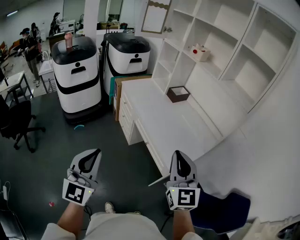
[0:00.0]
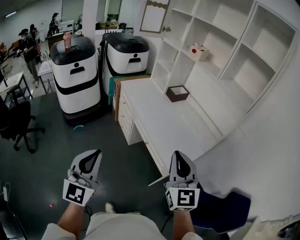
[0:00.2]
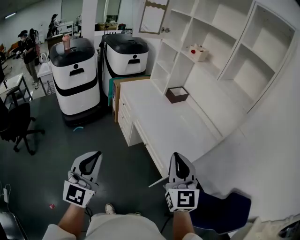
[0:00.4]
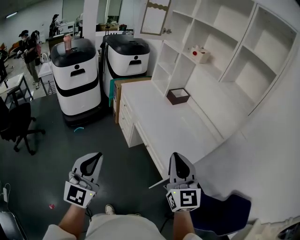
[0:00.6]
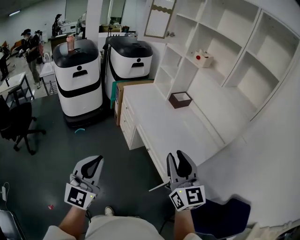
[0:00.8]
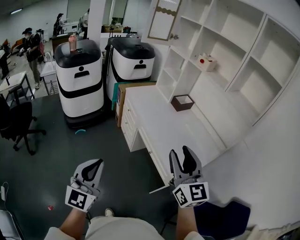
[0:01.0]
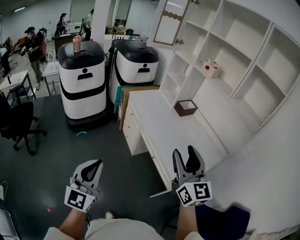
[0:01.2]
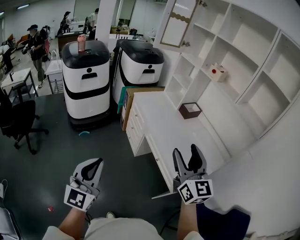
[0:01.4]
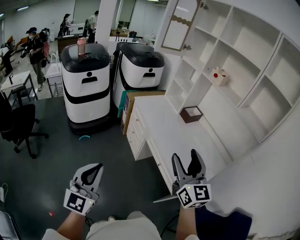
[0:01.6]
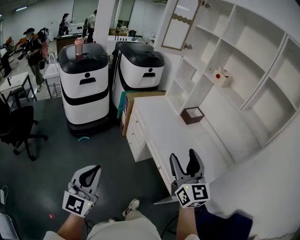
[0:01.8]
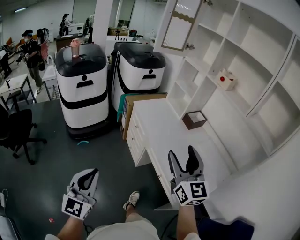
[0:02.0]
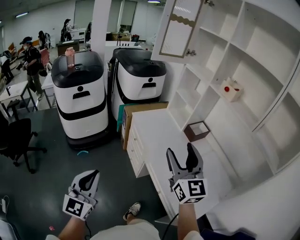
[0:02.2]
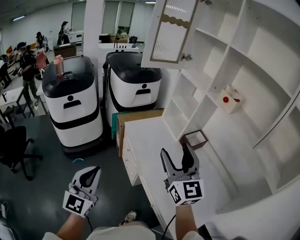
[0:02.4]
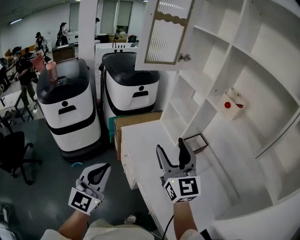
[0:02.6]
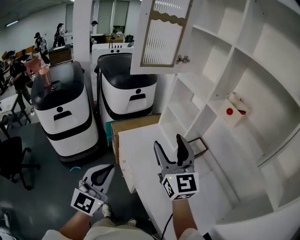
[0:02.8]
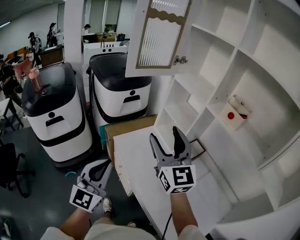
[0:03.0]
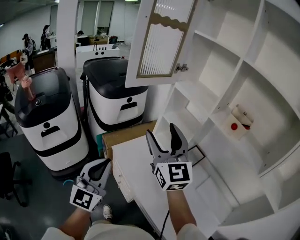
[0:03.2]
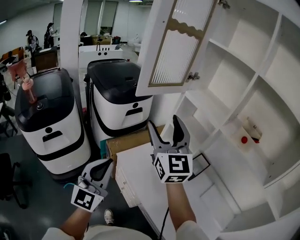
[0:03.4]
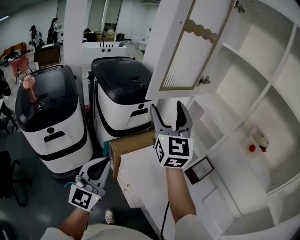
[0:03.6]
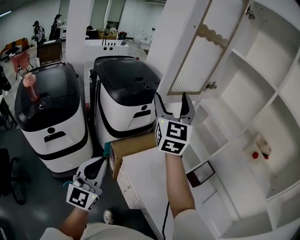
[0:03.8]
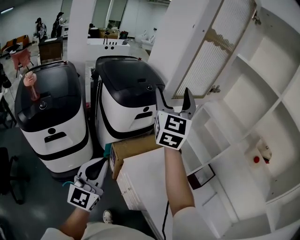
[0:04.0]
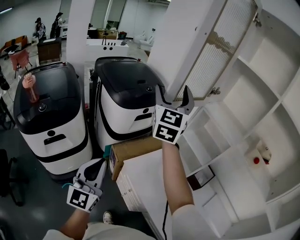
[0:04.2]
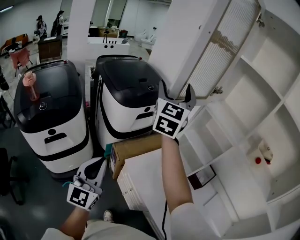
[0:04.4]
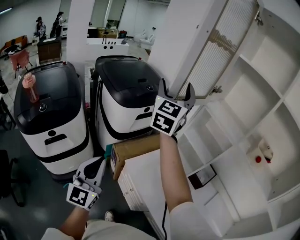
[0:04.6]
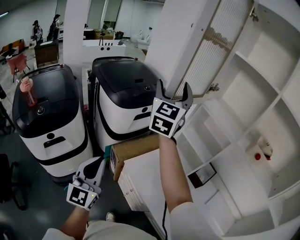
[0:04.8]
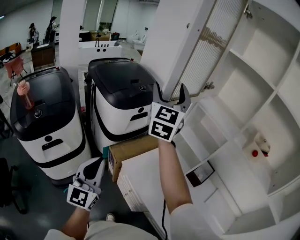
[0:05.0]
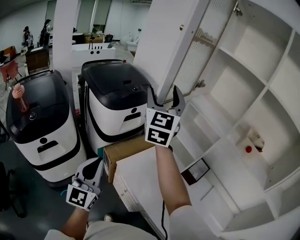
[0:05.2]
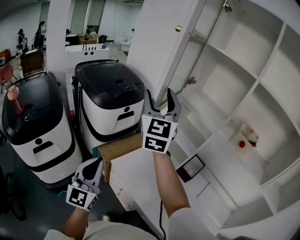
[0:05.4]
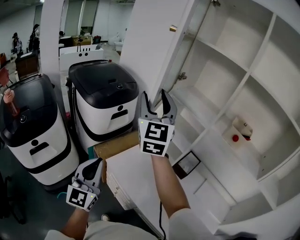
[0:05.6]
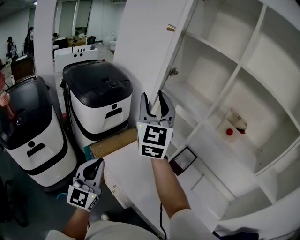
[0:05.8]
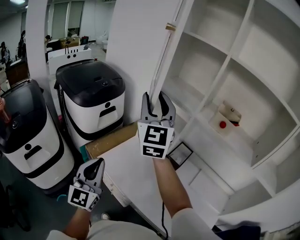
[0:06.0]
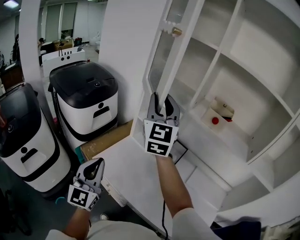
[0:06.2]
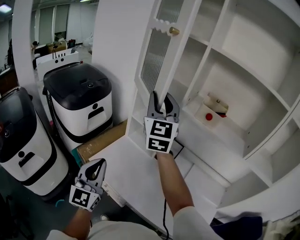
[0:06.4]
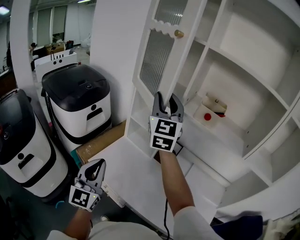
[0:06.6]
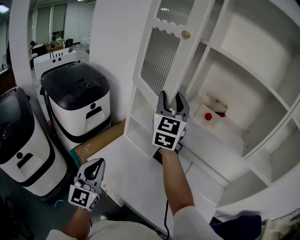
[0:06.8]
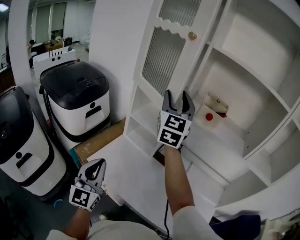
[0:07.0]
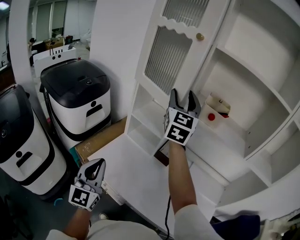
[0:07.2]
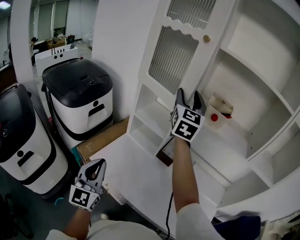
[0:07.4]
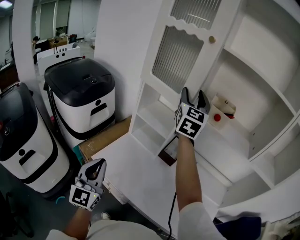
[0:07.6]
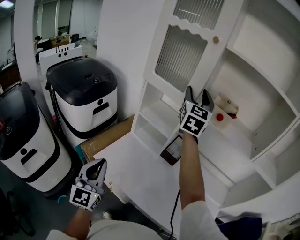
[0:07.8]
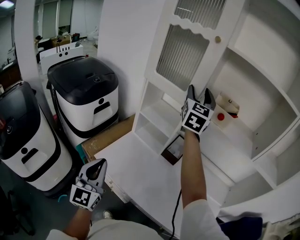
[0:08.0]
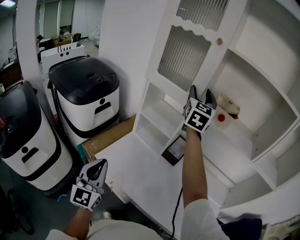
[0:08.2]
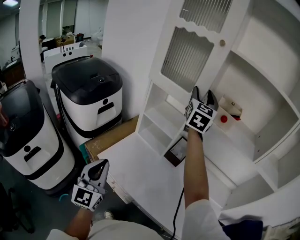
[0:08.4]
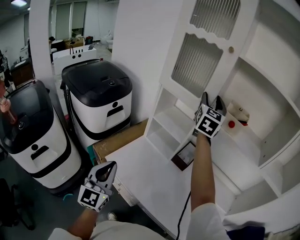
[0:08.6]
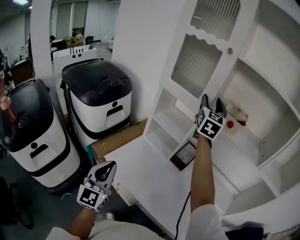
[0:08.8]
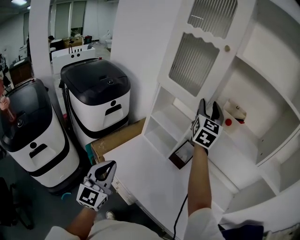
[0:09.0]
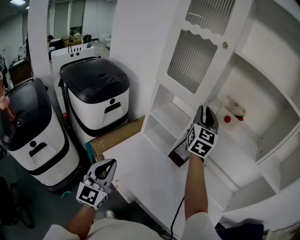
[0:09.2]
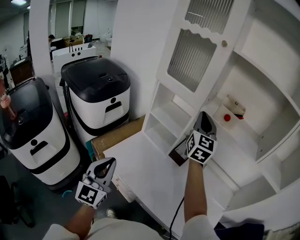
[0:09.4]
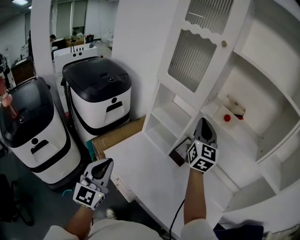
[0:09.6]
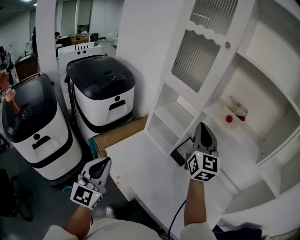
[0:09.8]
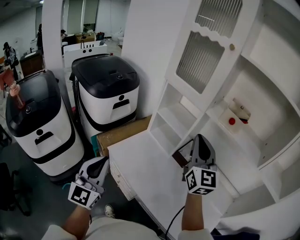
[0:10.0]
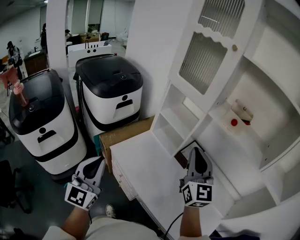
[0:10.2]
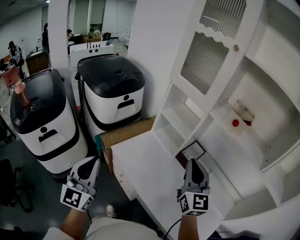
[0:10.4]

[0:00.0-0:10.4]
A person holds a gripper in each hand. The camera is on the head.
0:00.0 to 0:01.4: The right gripper goes some 15 cm forward and to the left, and opens its fingers, while the left gripper goes about 10 cm to the left.
0:01.4 to 0:03.0: Both grippers are carried forward, roughly 50 cm.
0:03.0 to 0:04.4: The right gripper heads forward and to the left, covering about 35 cm, and changes its angle by approximately 30 degrees; the left gripper shifts some 25 cm to the left and forward.
0:04.4 to 0:06.0: The right gripper is displaced to the right and backward by approximately 20 cm, and closes up; the left gripper moves to the right, about 15 cm.
0:06.0 to 0:07.4: The right gripper goes roughly 20 cm to the right and forward, and changes its angle by some 20 degrees.
0:07.4 to 0:09.0: The grippers make only small movements.
0:09.0 to 0:10.4: The left gripper shifts about 5 cm backward, while the right gripper goes approximately 25 cm backward and downward, swivels approximately 30 degrees, and closes its fingers.

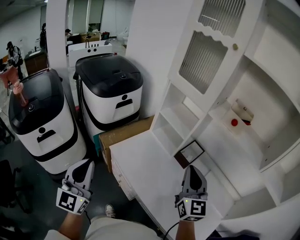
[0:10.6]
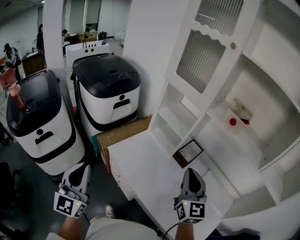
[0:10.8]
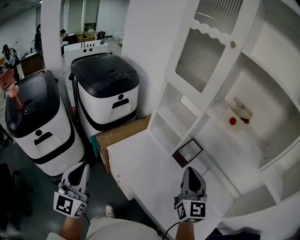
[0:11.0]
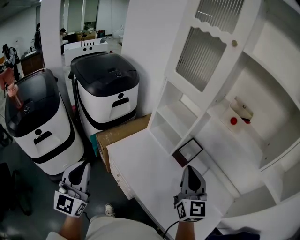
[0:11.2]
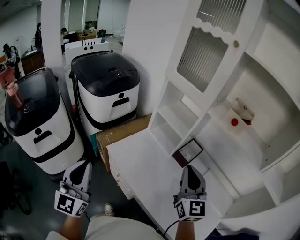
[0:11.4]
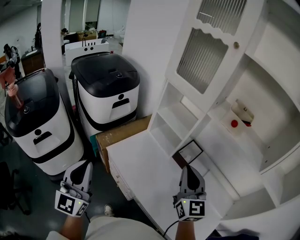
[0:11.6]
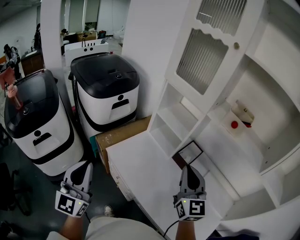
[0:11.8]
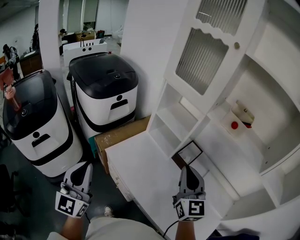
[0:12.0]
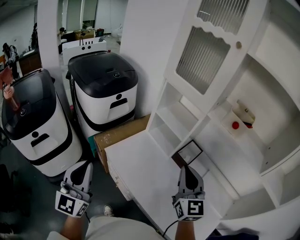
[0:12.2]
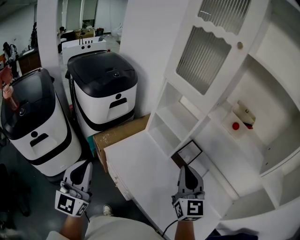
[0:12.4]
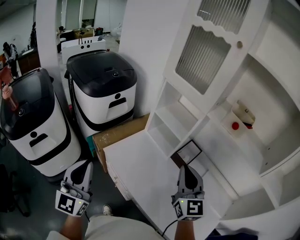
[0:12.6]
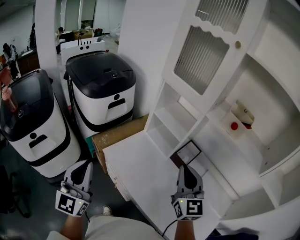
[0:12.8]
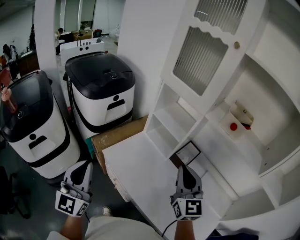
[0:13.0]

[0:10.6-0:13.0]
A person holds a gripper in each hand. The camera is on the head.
0:10.6 to 0:11.8: Both grippers stay about where they are.
0:11.8 to 0:13.0: The grippers move only a little.

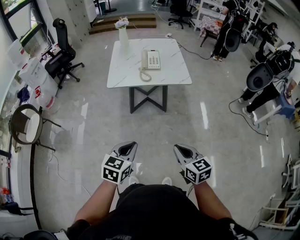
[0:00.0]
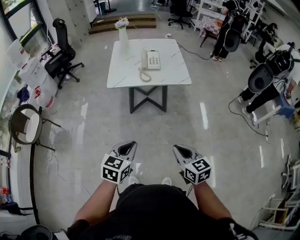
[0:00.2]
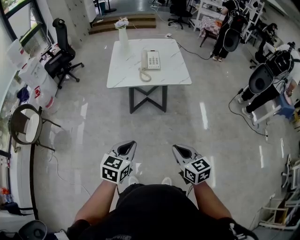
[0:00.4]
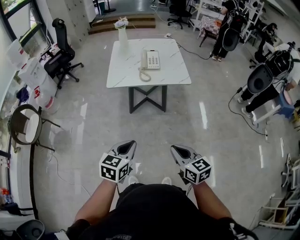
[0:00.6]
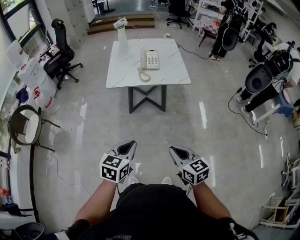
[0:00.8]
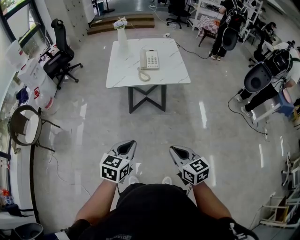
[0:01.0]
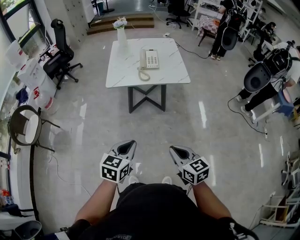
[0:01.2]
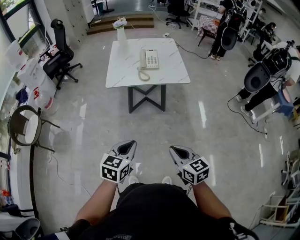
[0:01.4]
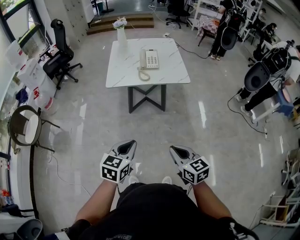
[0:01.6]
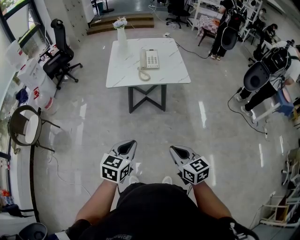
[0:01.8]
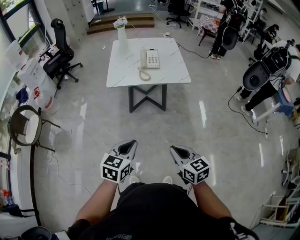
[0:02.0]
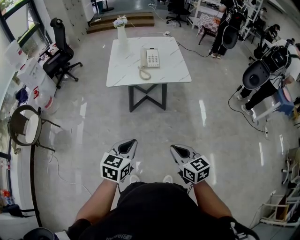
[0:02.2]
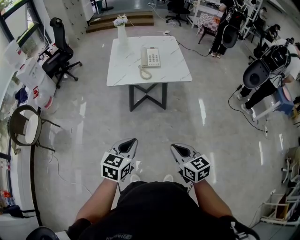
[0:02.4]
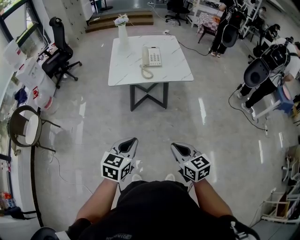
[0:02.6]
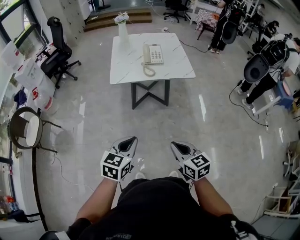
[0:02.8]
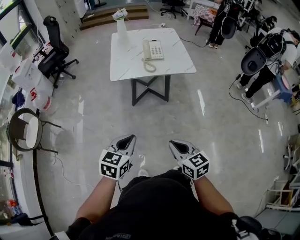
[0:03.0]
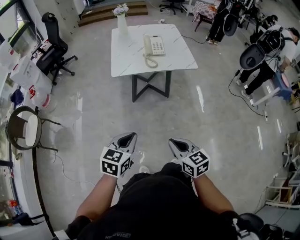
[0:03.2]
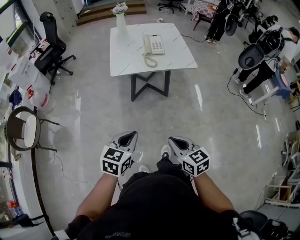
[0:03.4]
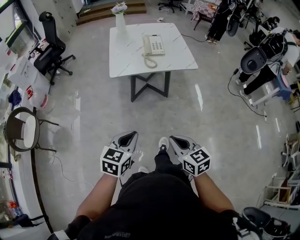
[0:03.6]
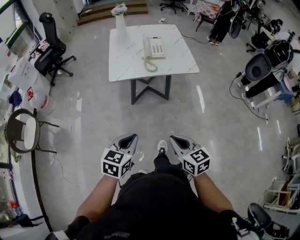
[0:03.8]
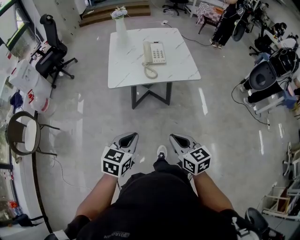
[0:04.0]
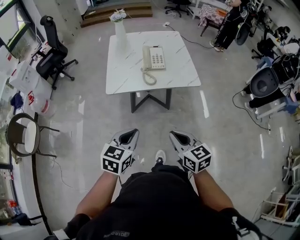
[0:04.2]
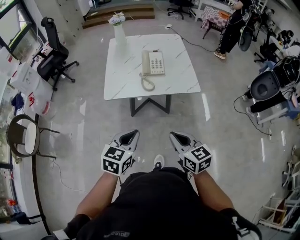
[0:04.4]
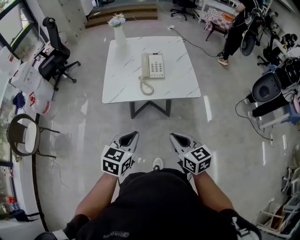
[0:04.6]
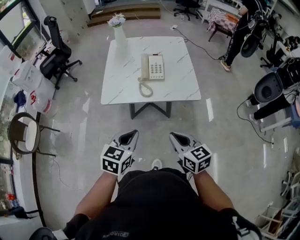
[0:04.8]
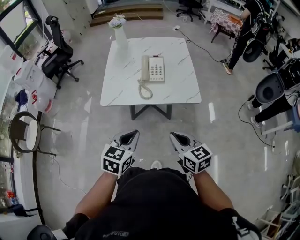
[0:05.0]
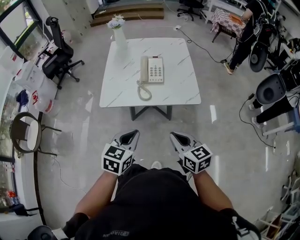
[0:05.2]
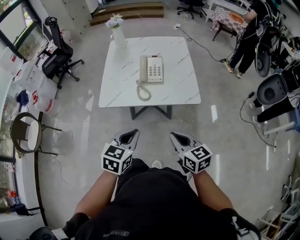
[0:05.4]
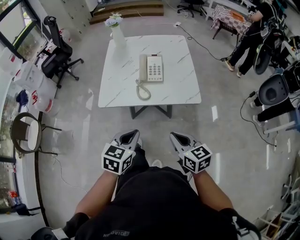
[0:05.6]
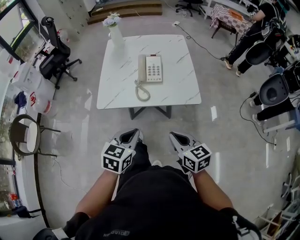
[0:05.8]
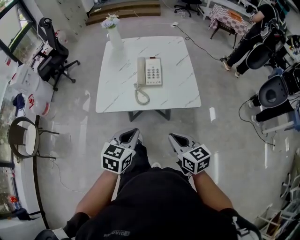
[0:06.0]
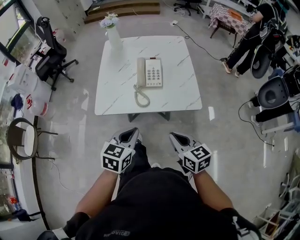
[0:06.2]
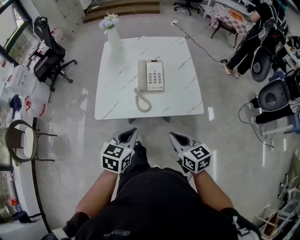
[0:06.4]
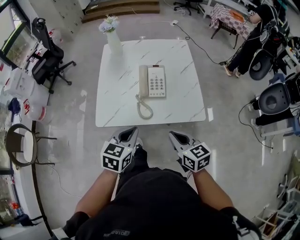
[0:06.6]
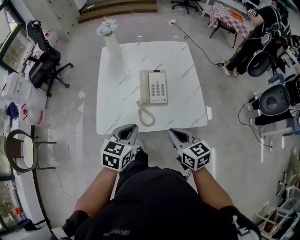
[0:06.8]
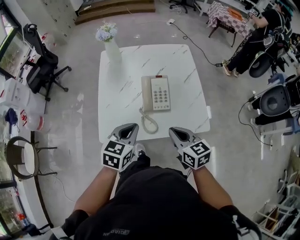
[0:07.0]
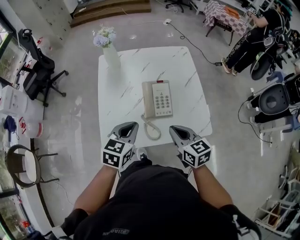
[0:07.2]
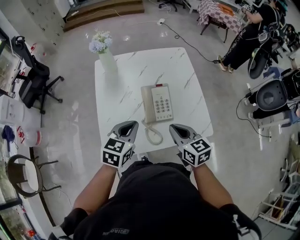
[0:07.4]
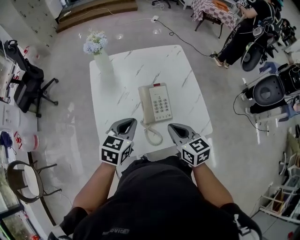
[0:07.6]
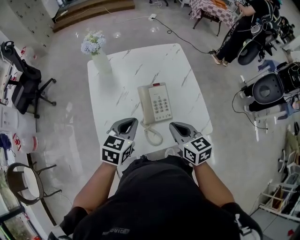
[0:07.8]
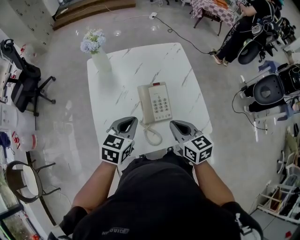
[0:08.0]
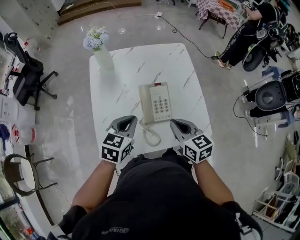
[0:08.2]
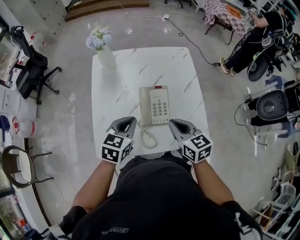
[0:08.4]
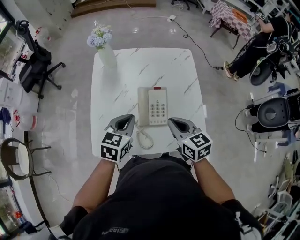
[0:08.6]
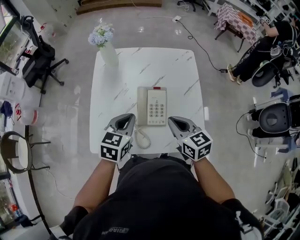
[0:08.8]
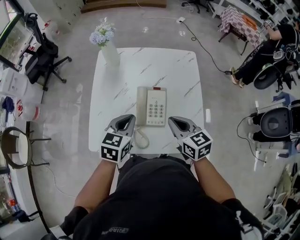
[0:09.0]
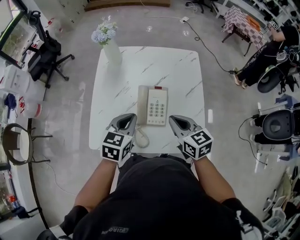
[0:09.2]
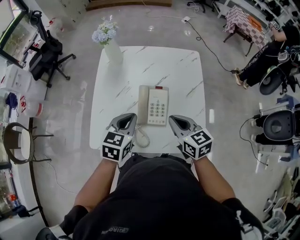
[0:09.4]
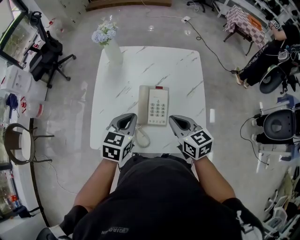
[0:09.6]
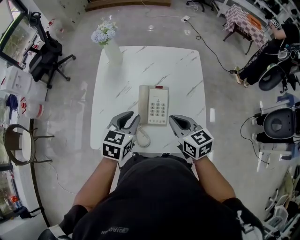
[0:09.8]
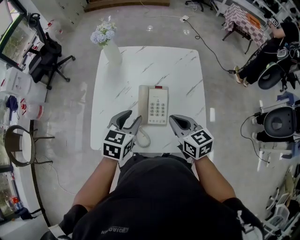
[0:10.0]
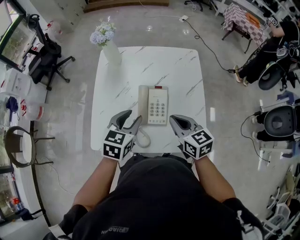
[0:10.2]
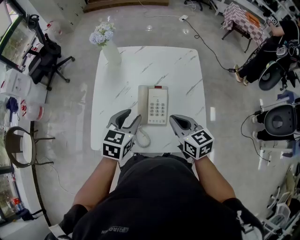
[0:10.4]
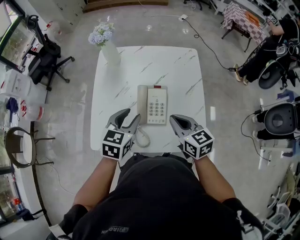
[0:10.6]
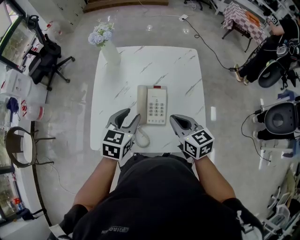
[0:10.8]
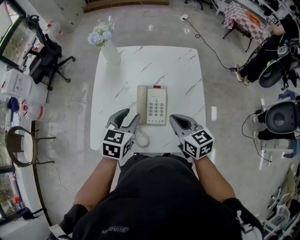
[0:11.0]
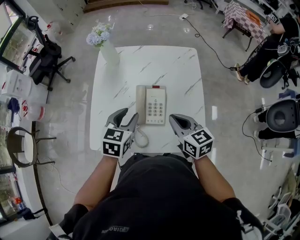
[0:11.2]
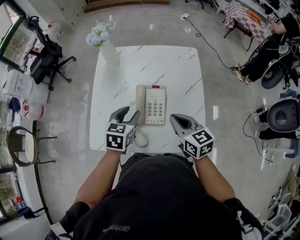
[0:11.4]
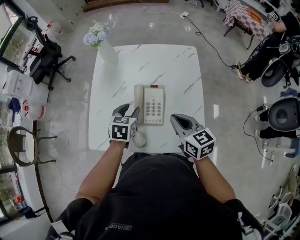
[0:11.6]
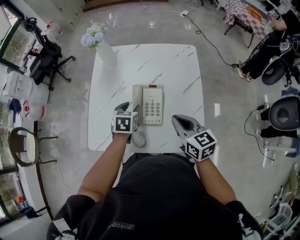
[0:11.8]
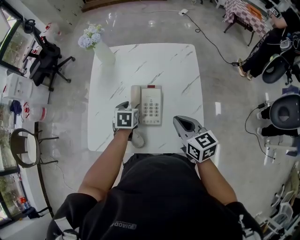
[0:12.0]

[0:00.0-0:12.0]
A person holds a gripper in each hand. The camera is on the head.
0:00.0 to 0:01.6: There are only small adjustments of the grippers.
0:01.6 to 0:03.0: The grippers both shift to the left by some 10 cm.
0:03.0 to 0:04.4: The grippers both shift forward by about 20 cm.
0:04.4 to 0:06.0: The two grippers go about 15 cm forward and to the right.
0:06.0 to 0:07.6: The grippers both shift forward by approximately 35 cm.
0:07.6 to 0:09.0: The left gripper travels to the right by about 5 cm. Meanwhile the right gripper moves forward and to the right, roughly 10 cm.
0:09.0 to 0:10.4: The left gripper opens.
0:10.4 to 0:12.0: The right gripper shifts roughly 5 cm to the right, while the left gripper shifts some 15 cm downward and forward, and changes its angle by roughly 20 degrees.
